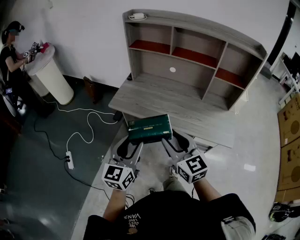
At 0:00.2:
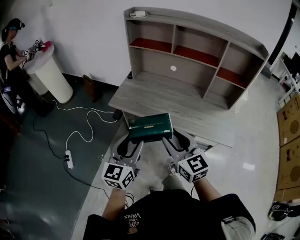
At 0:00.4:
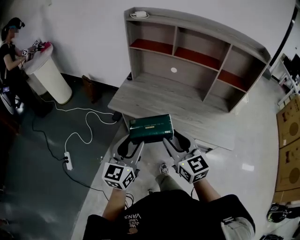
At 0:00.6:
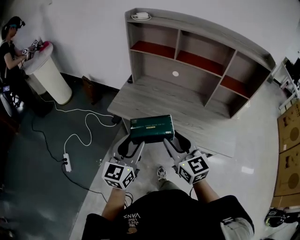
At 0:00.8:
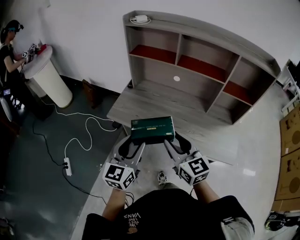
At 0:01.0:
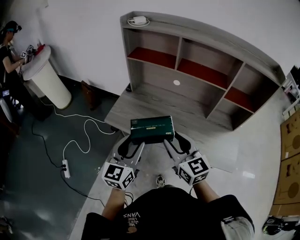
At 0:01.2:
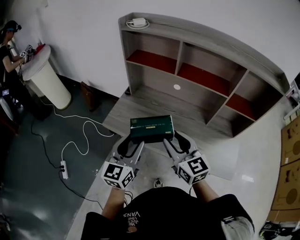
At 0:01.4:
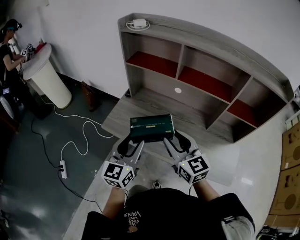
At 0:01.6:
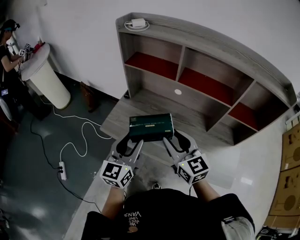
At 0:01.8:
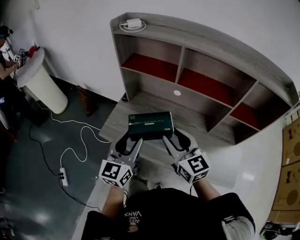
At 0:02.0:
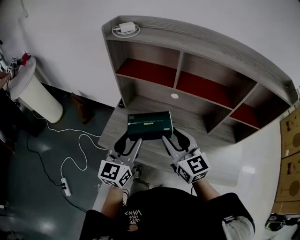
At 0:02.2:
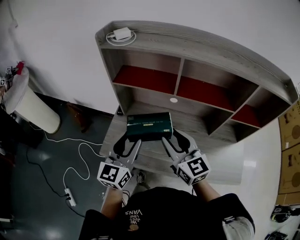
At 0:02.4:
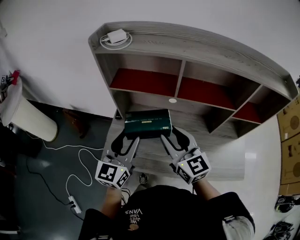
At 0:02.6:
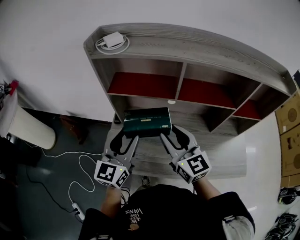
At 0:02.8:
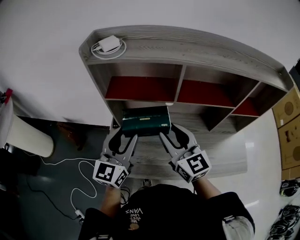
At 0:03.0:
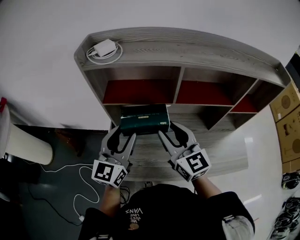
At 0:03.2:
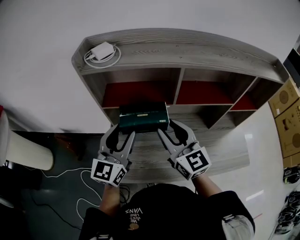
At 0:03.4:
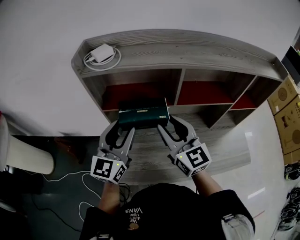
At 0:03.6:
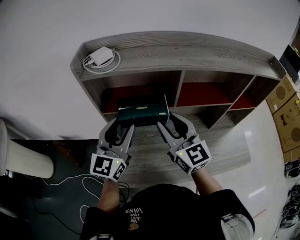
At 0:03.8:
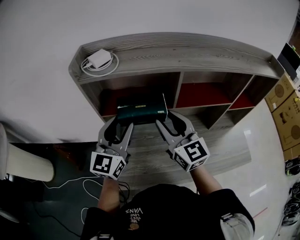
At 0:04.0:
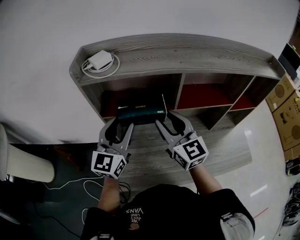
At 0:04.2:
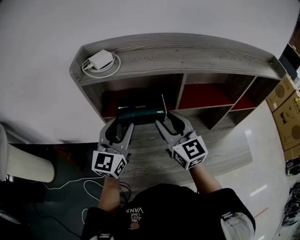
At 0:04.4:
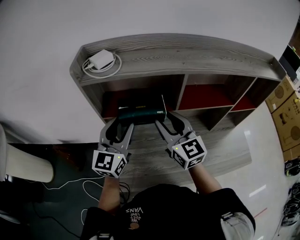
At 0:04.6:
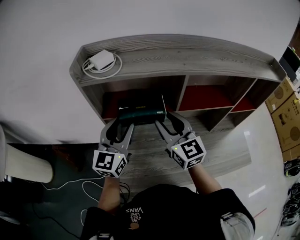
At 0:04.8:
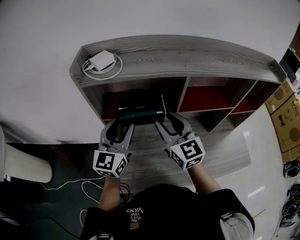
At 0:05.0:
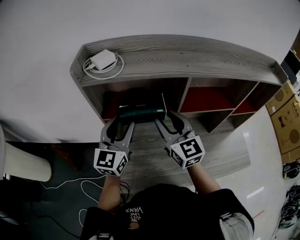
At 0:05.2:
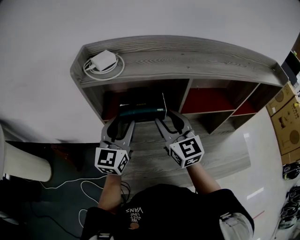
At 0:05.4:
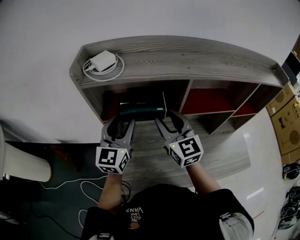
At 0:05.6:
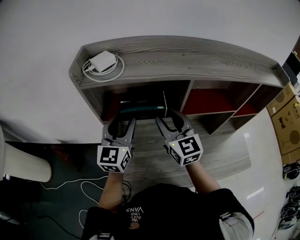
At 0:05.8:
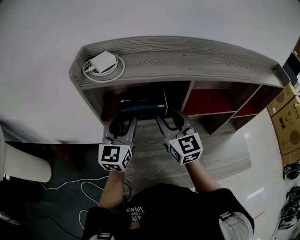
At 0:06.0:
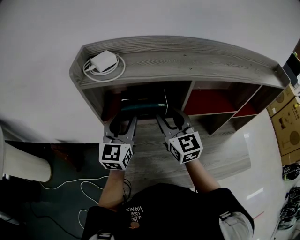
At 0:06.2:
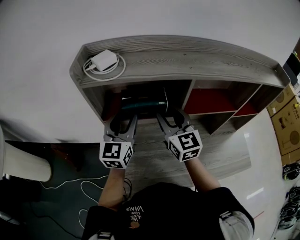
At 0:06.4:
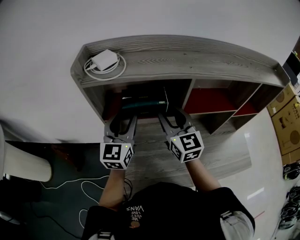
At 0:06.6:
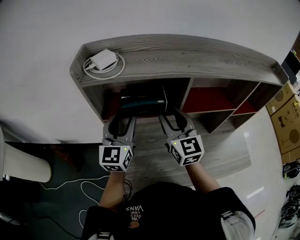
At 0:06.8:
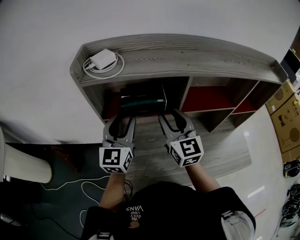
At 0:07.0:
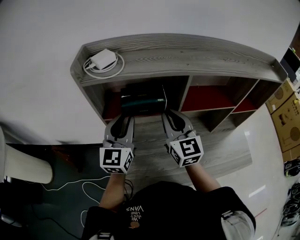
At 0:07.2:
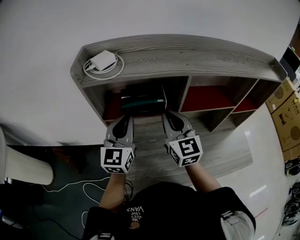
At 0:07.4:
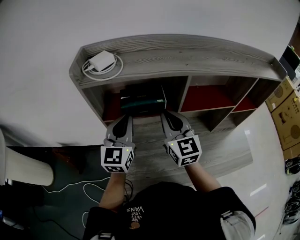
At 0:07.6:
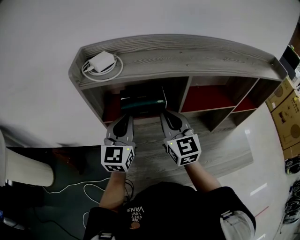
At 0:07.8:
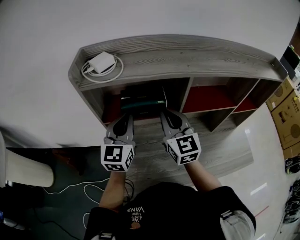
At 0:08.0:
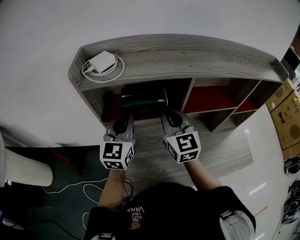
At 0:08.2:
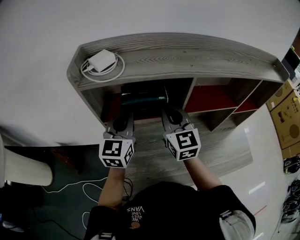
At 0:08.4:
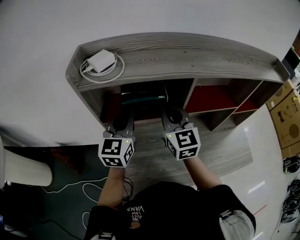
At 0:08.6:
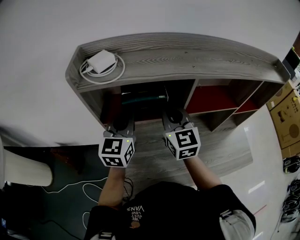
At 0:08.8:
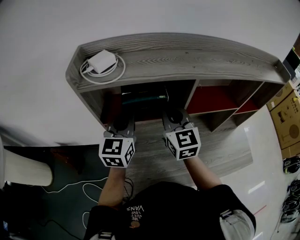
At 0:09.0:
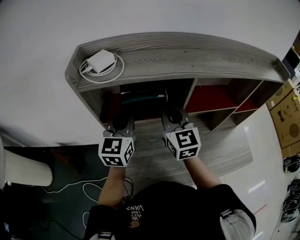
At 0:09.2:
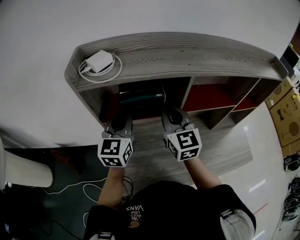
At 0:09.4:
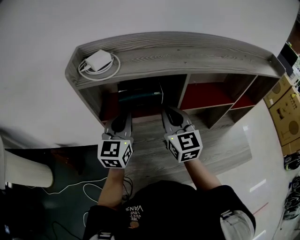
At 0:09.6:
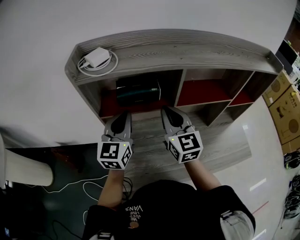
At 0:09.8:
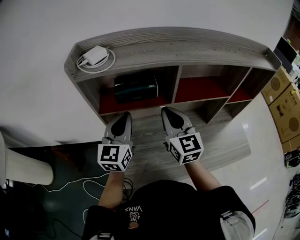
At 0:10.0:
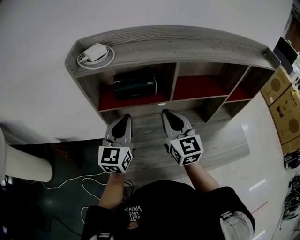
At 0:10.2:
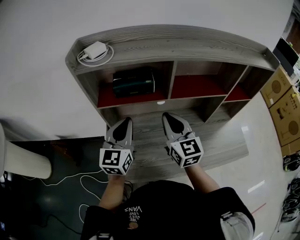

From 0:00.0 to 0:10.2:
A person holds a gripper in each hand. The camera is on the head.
From 0:00.0 to 0:01.4: The grippers both shift forward by some 25 cm.
From 0:01.4 to 0:03.0: Both grippers travel together forward, some 20 cm. The right gripper swivels some 20 degrees; the left gripper rotates about 20 degrees.
From 0:03.0 to 0:04.4: Both grippers move forward, about 10 cm.
From 0:04.4 to 0:05.8: The grippers make only small movements.
From 0:05.8 to 0:07.2: The left gripper closes. The right gripper closes up.
From 0:07.2 to 0:08.8: There are only small adjustments of the grippers.
From 0:08.8 to 0:10.2: The two grippers go roughly 10 cm backward.

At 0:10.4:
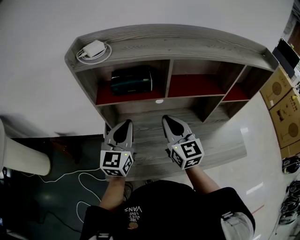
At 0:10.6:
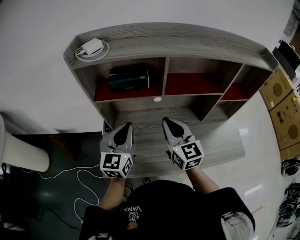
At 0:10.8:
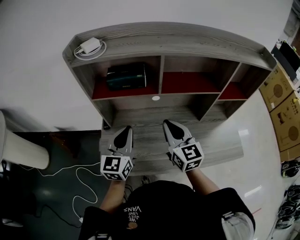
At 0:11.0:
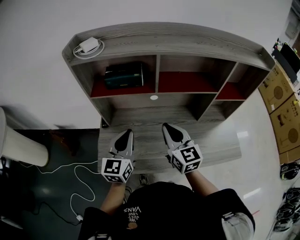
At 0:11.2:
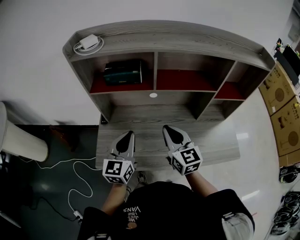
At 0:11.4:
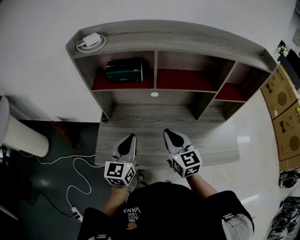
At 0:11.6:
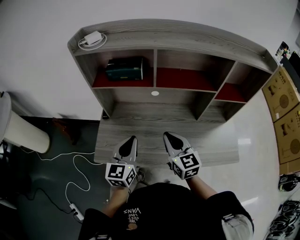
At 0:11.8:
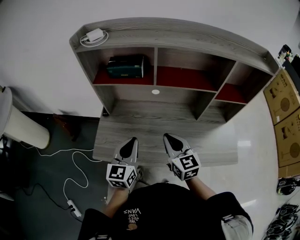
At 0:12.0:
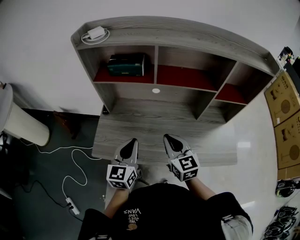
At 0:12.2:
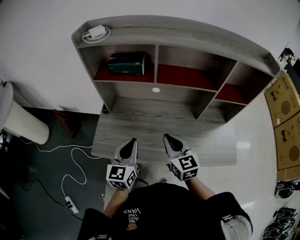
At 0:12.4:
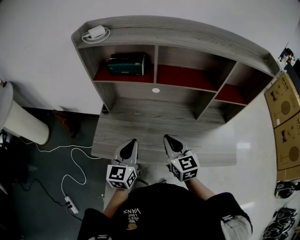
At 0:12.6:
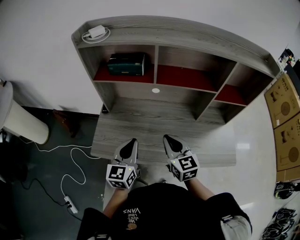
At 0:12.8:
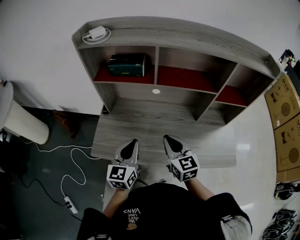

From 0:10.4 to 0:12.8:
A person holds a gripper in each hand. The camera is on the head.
From 0:10.4 to 0:11.6: The left gripper shifts some 15 cm backward, to the right and downward. Meanwhile the right gripper moves backward, downward and to the right, about 15 cm.
From 0:11.6 to 0:12.8: The grippers make only small movements.

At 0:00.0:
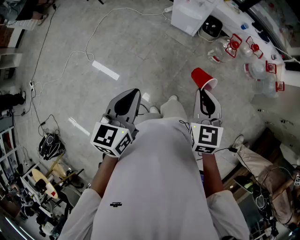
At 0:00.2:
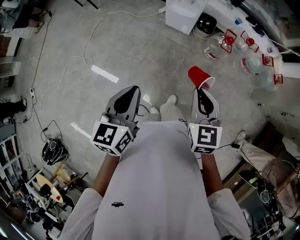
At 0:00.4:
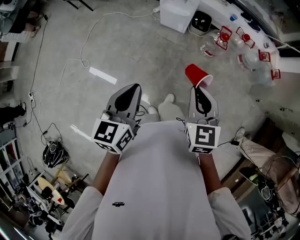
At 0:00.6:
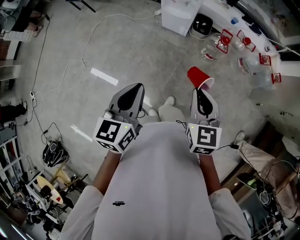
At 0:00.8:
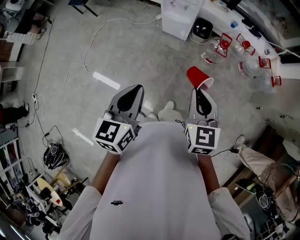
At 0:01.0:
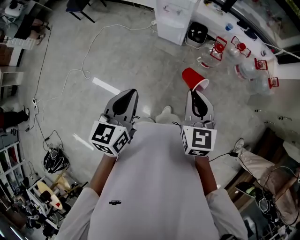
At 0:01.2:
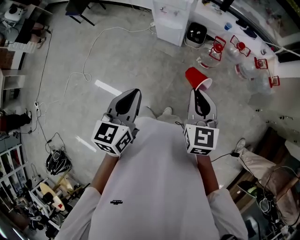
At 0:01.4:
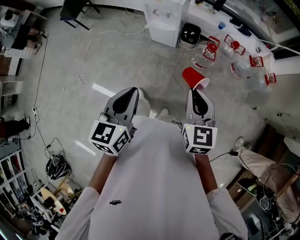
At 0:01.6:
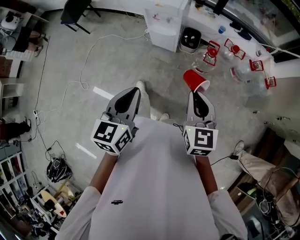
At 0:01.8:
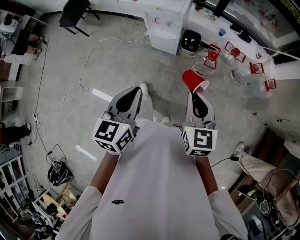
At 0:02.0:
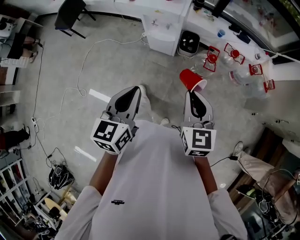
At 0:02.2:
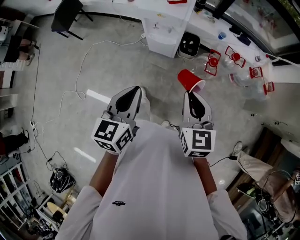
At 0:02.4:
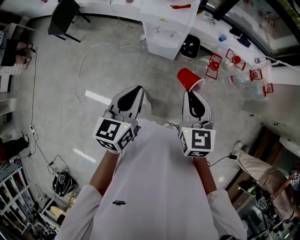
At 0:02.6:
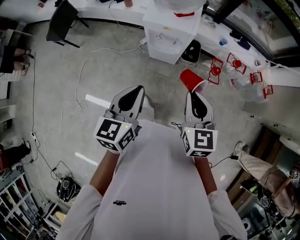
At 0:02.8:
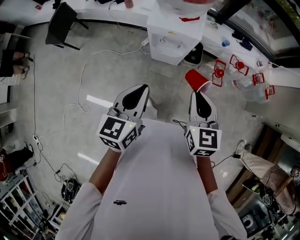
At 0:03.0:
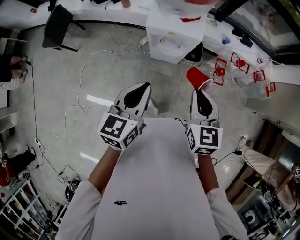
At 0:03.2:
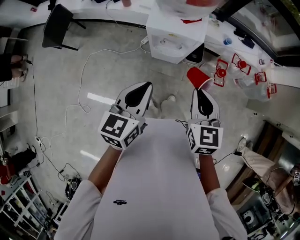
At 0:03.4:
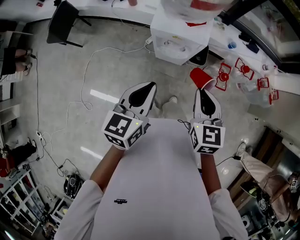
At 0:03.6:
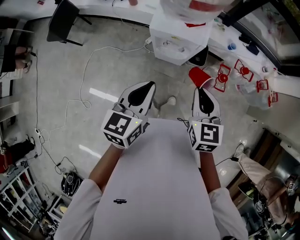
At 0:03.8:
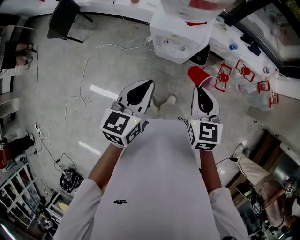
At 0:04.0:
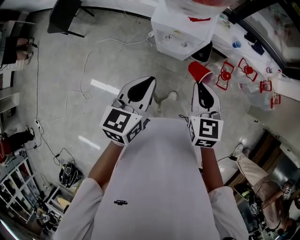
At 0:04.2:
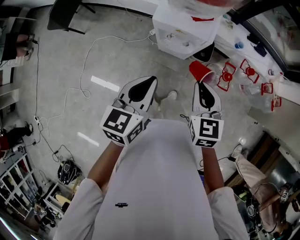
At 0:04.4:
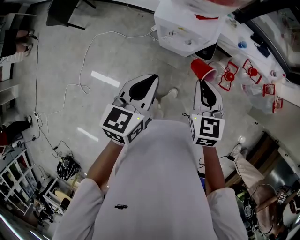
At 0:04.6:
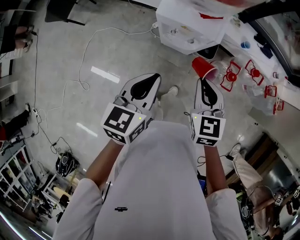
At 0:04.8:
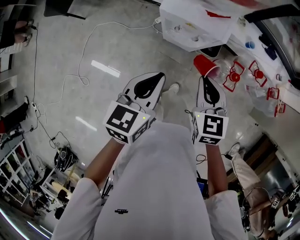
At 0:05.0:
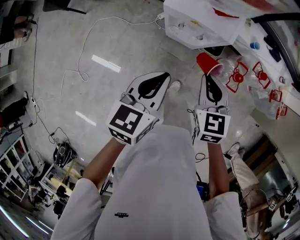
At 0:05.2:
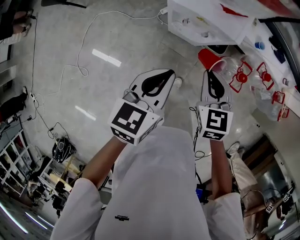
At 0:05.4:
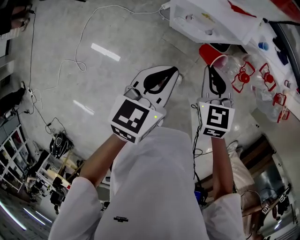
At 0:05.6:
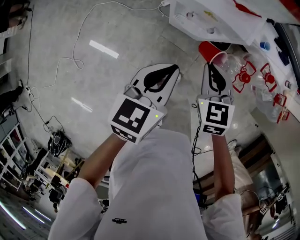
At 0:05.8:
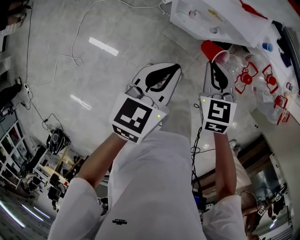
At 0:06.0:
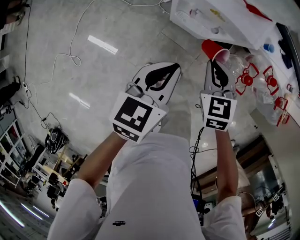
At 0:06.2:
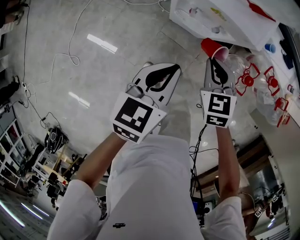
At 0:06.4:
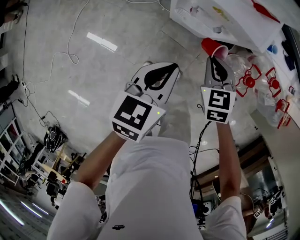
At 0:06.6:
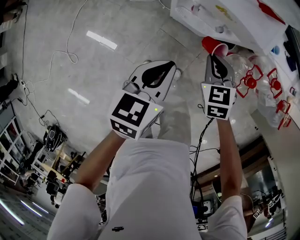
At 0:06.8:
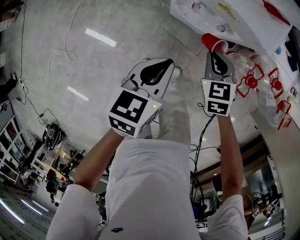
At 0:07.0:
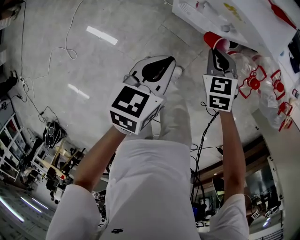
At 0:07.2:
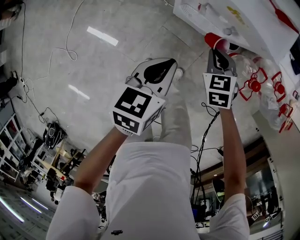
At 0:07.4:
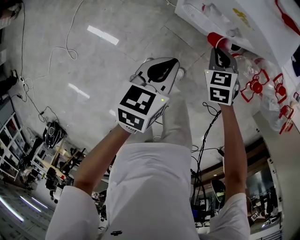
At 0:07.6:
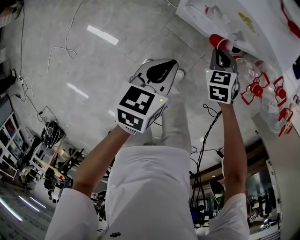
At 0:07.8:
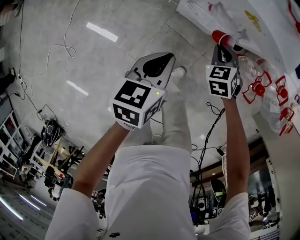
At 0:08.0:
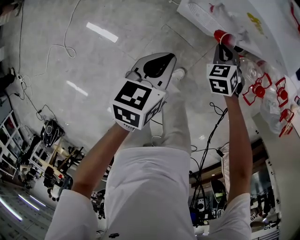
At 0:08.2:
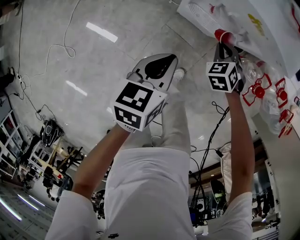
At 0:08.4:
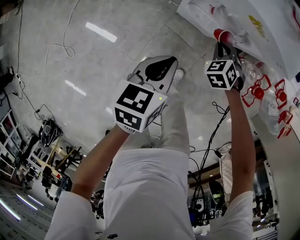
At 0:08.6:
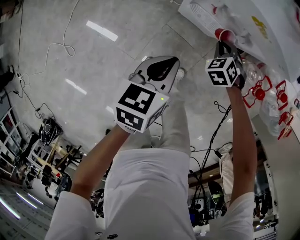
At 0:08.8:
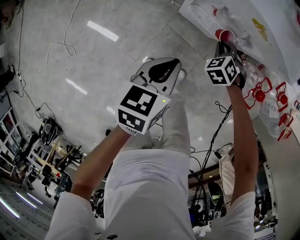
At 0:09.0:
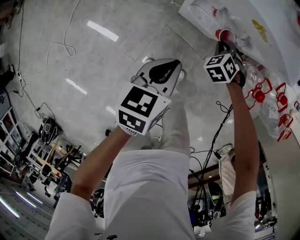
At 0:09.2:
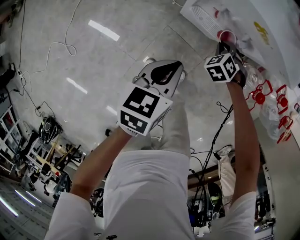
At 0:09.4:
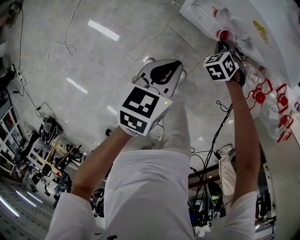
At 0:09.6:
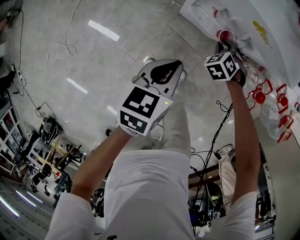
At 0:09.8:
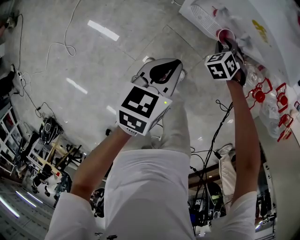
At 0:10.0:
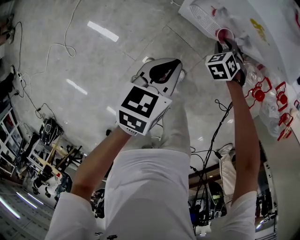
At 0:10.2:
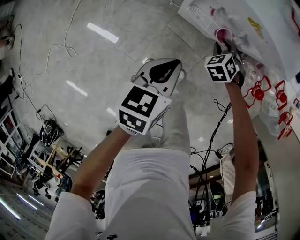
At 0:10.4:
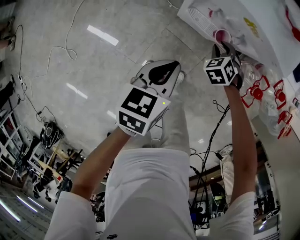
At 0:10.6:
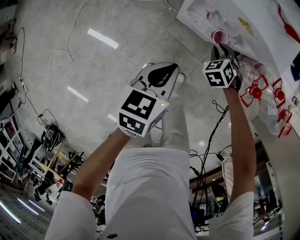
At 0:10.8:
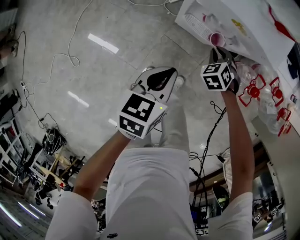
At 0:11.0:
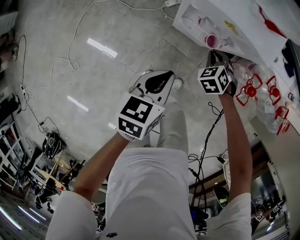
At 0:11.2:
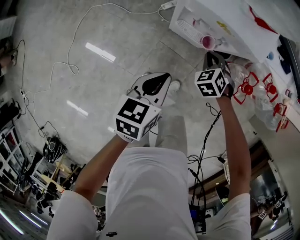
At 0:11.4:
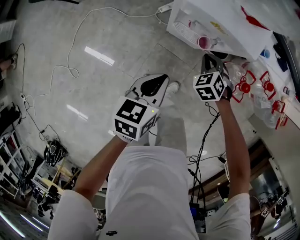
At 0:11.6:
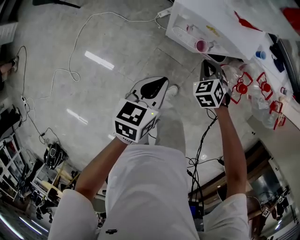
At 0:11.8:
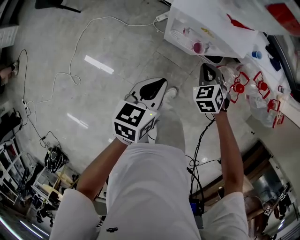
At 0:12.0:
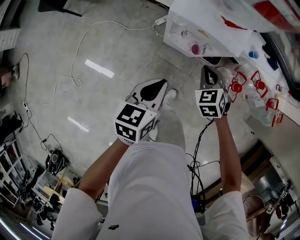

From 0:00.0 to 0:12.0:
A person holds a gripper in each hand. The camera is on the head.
From 0:00.0 to 0:01.6: Both grippers move to the right and forward, roughly 15 cm.
From 0:01.6 to 0:03.0: The two grippers go about 30 cm forward and to the left.
From 0:03.0 to 0:04.4: The left gripper moves forward, roughly 5 cm; the right gripper moves forward and downward, some 10 cm.
From 0:04.4 to 0:06.0: Both grippers move downward, approximately 15 cm.
From 0:06.0 to 0:07.6: Both grippers travel together downward, approximately 15 cm.
From 0:07.6 to 0:09.0: The right gripper goes some 10 cm downward, and rotates roughly 30 degrees.
From 0:09.0 to 0:10.4: The right gripper opens up.
From 0:10.4 to 0:12.0: The right gripper is displaced upward by some 25 cm, and closes. The left gripper shifts roughly 15 cm upward.
